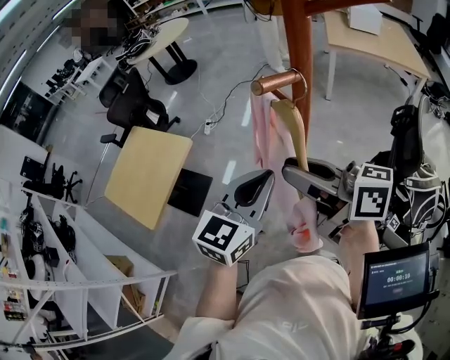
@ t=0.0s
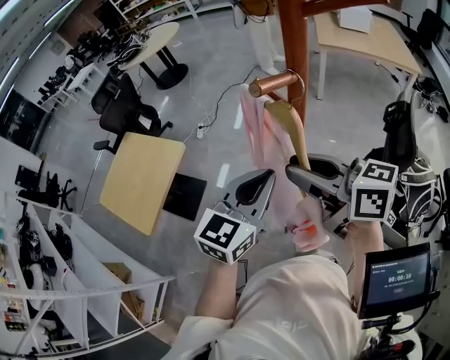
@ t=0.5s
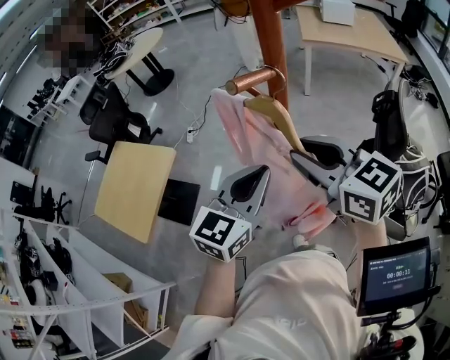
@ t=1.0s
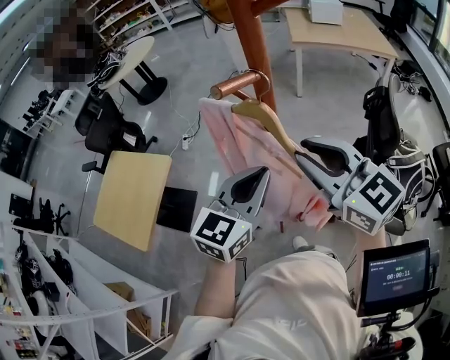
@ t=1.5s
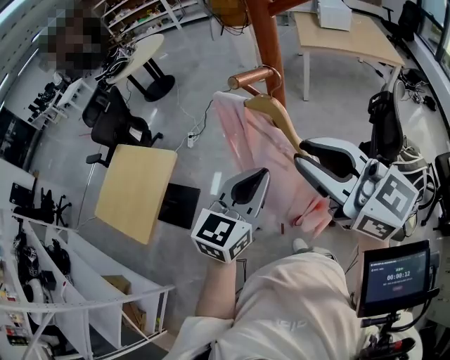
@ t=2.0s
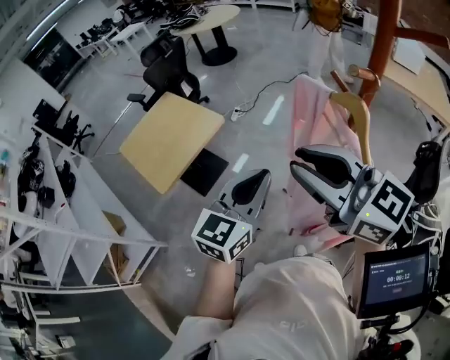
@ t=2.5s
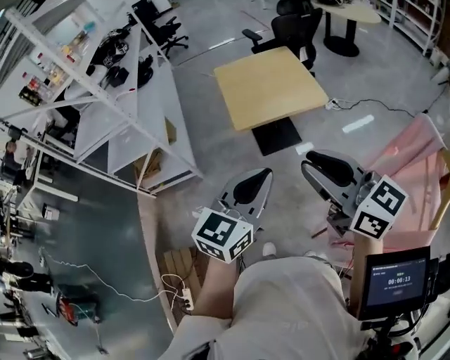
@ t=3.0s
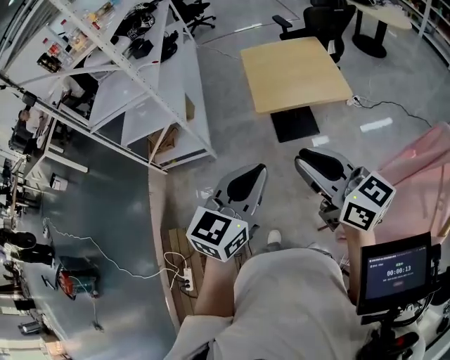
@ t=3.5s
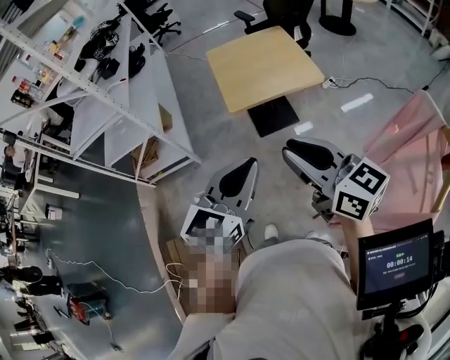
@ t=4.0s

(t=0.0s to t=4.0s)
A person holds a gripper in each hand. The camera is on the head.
t=0.0s - t=2.0s: The right gripper is displaced upward and to the right by approximately 10 cm, and rotates roughly 40 degrees.
t=2.0s - t=4.0s: The left gripper shifts by roughly 40 cm, and rotates roughly 60 degrees. Meanwhile the right gripper ends up roughly 40 cm from where it was, and swivels approximately 60 degrees.

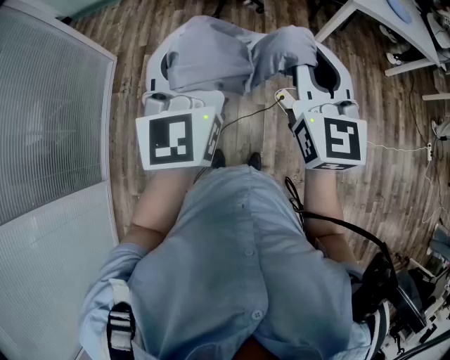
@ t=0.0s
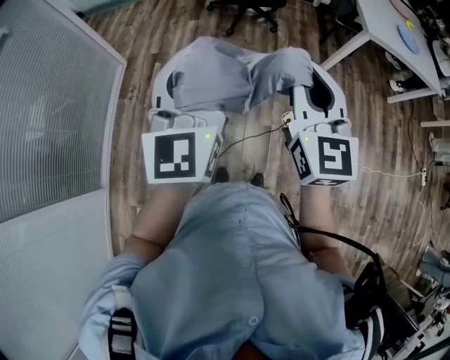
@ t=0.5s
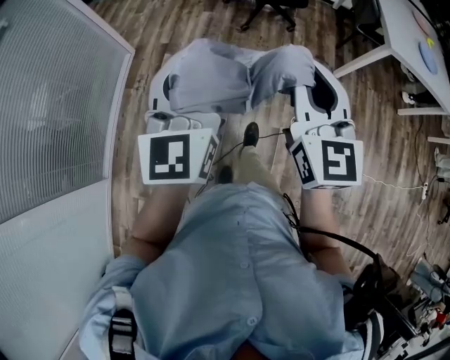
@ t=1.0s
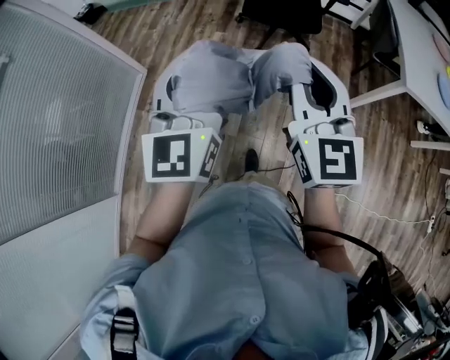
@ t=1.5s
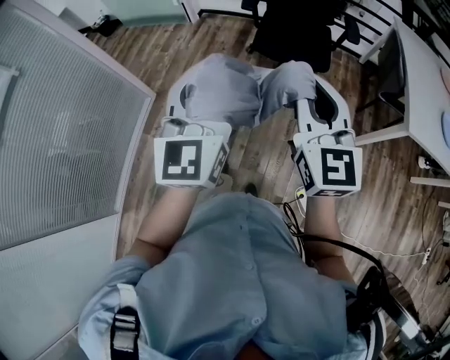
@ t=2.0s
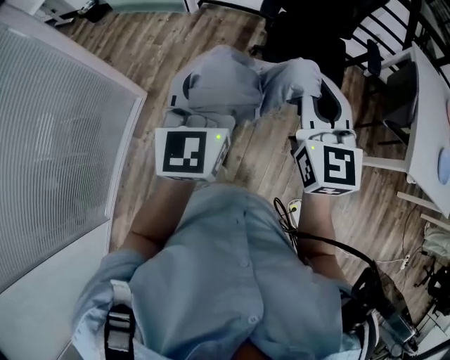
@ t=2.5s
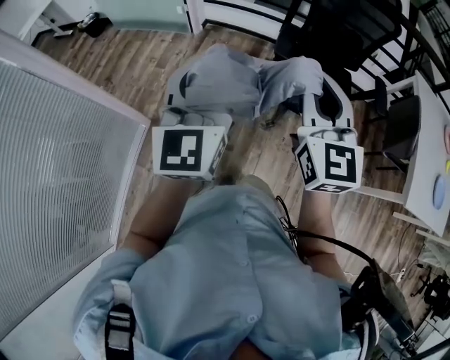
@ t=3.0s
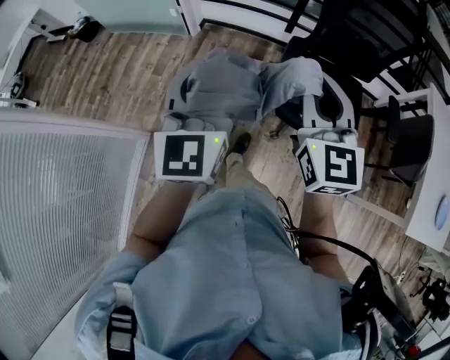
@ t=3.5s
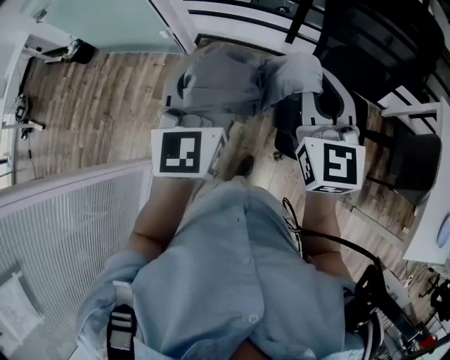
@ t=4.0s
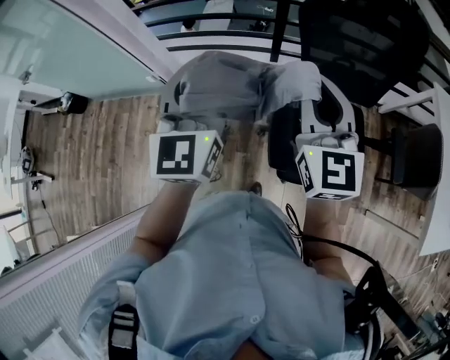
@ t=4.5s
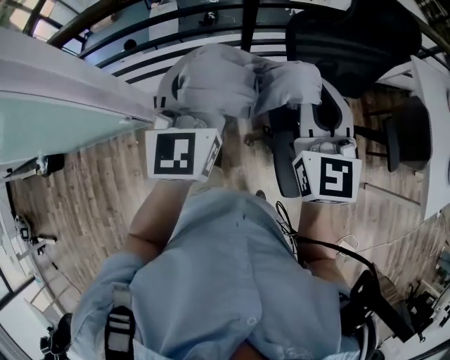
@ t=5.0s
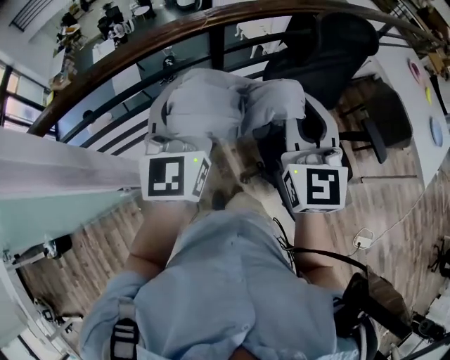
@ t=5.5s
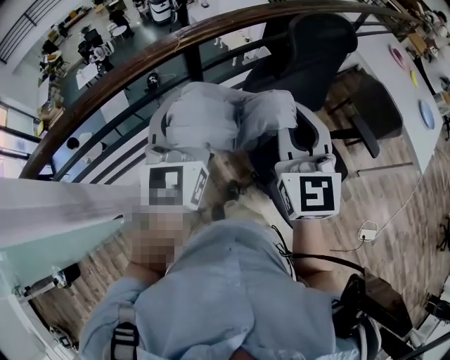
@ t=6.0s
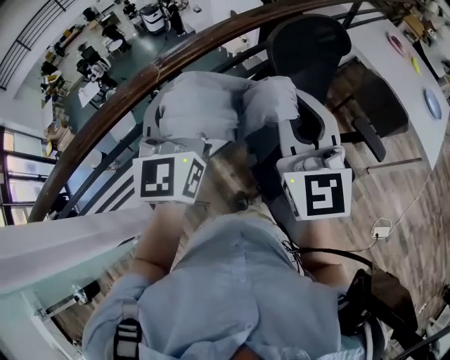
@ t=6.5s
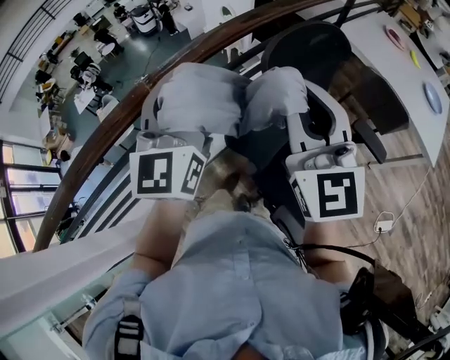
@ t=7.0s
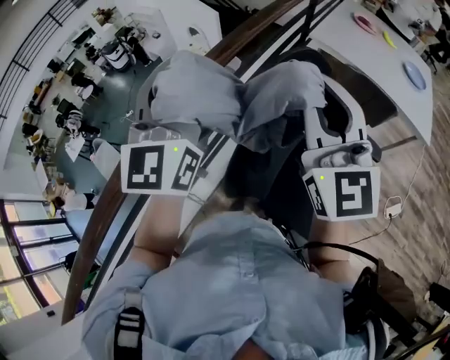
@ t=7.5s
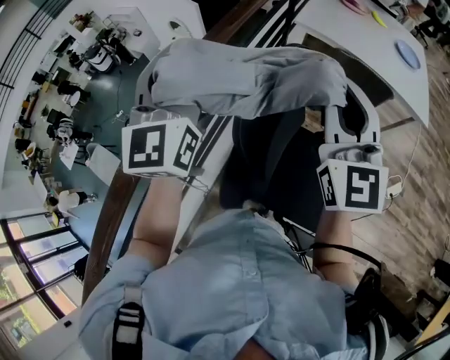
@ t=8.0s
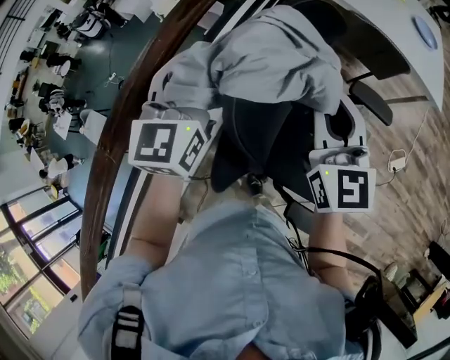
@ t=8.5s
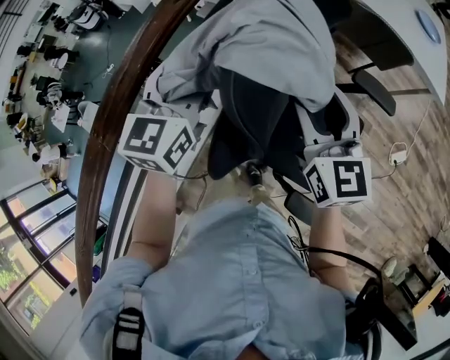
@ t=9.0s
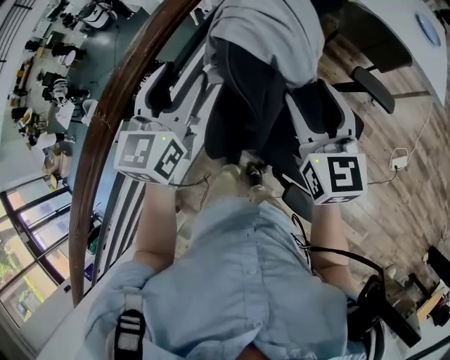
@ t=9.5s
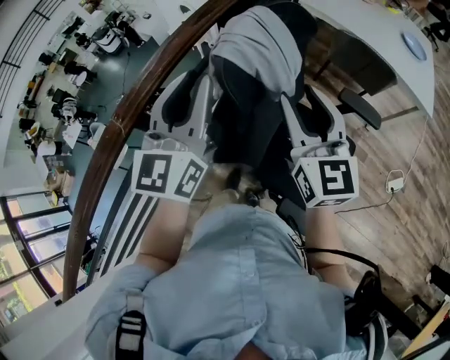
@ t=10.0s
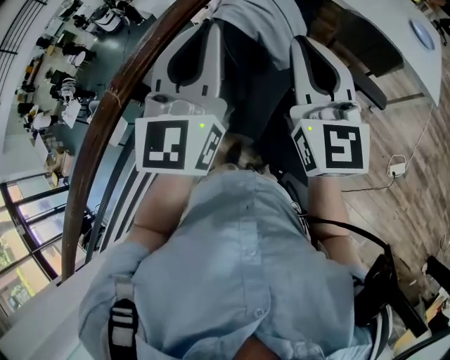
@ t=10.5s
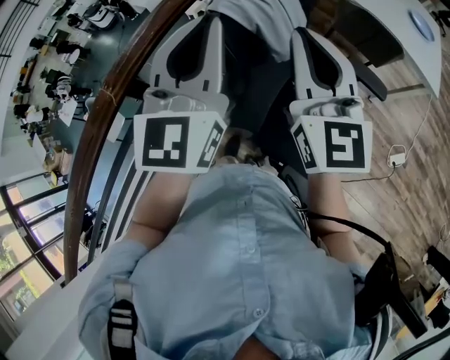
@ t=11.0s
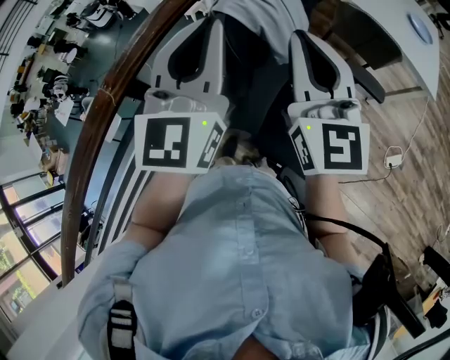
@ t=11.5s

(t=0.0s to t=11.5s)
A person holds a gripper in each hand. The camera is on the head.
t=0.0s - t=2.0s: The two grippers travel together, forward, approximately 40 cm.
t=2.0s - t=4.0s: Both grippers are carried forward, roughly 70 cm.
t=4.0s - t=6.0s: The right gripper ends up approximately 30 cm from where it was, and turns by roughly 50 degrees, while the left gripper ends up some 40 cm from where it was, and turns by approximately 50 degrees.
t=6.0s - t=7.5s: The left gripper moves forward, approximately 30 cm, and changes its angle by approximately 20 degrees. The right gripper is displaced forward, upward and to the right by some 30 cm, and rotates about 20 degrees.
t=7.5s - t=9.5s: The grippers both shift downward by about 20 cm. The right gripper swivels approximately 30 degrees, and opens up. The left gripper swivels roughly 30 degrees, and opens.
t=9.5s - t=11.5s: The left gripper moves upward and to the right, some 15 cm, turns by about 20 degrees, and closes. The right gripper travels upward by about 10 cm, and closes.

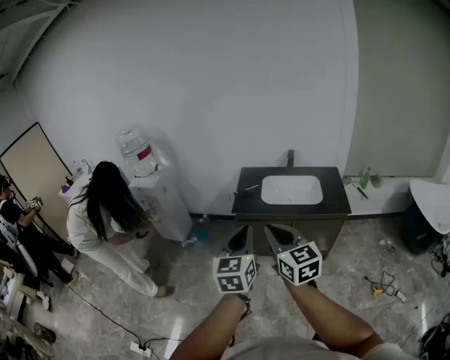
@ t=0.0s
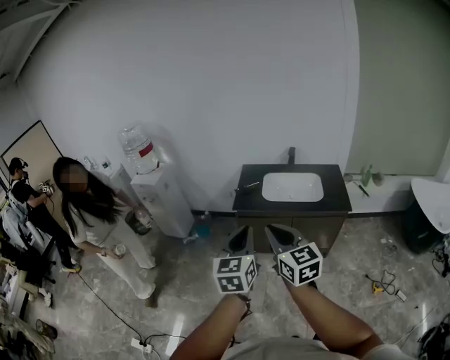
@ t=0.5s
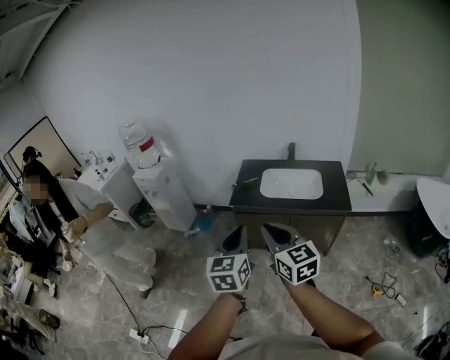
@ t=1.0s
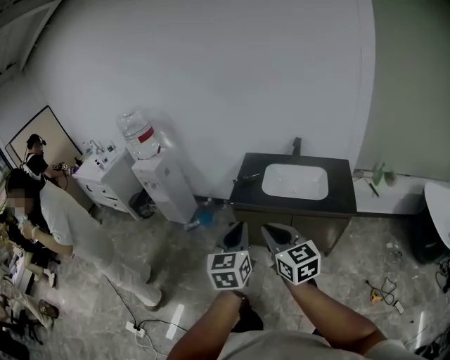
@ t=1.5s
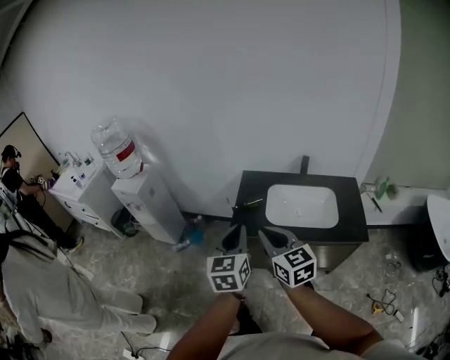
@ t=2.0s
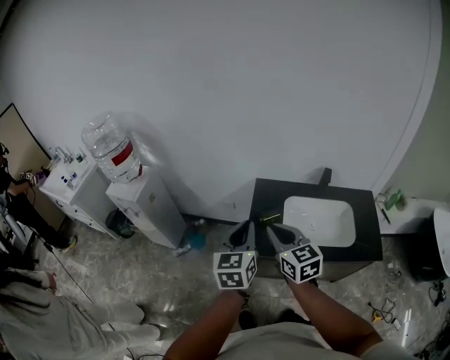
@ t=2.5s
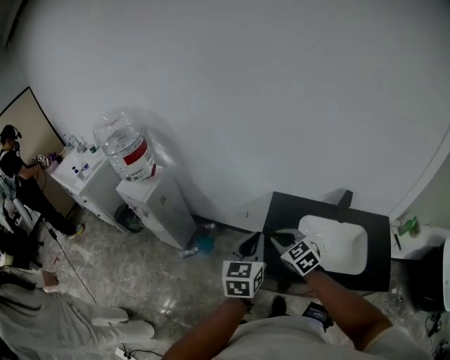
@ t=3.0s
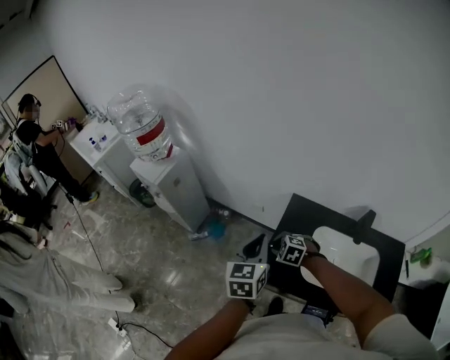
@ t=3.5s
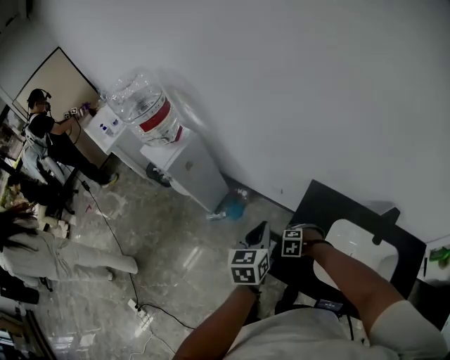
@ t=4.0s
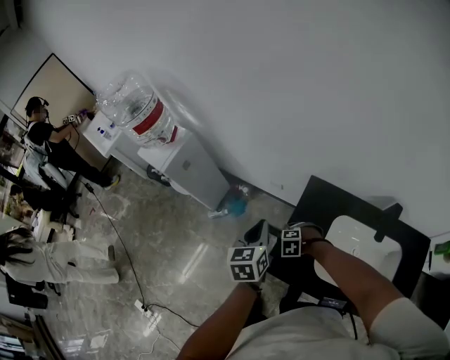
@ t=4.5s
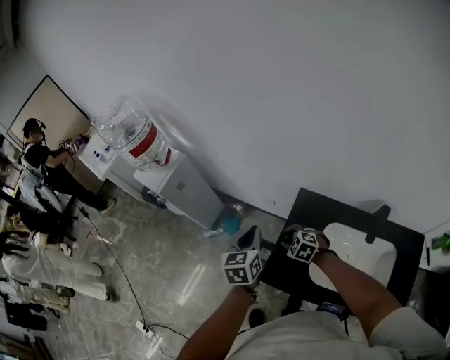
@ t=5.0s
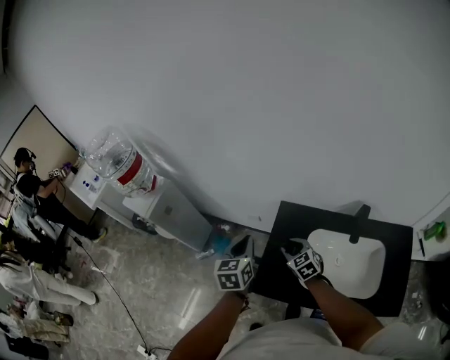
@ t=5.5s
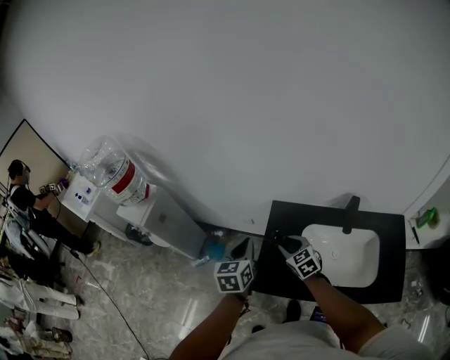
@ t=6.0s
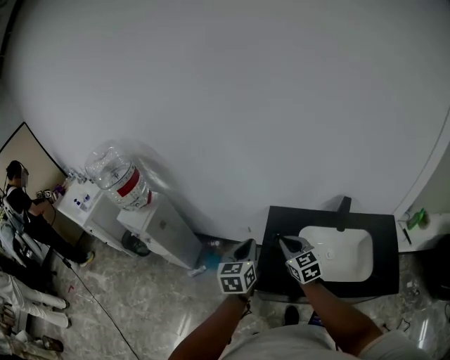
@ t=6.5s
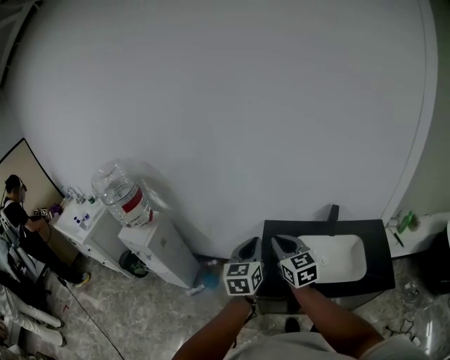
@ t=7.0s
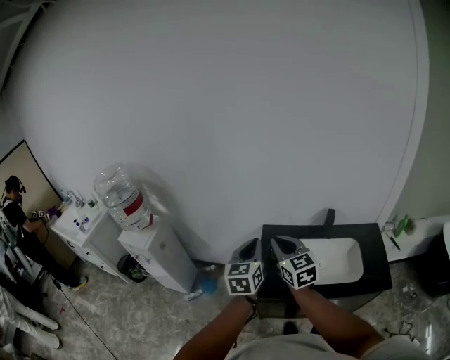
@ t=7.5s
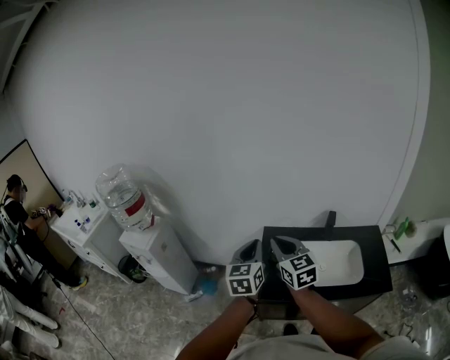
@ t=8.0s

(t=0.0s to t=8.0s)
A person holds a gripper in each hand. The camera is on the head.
t=0.0s - t=2.0s: Both grippers move forward, roughly 30 cm.
t=2.0s - t=4.0s: The right gripper goes roughly 40 cm downward, tips its fingers downward by roughly 70 degrees, and opens. The left gripper shifts by about 40 cm, and rotates some 30 degrees.
t=4.0s - t=6.0s: The left gripper shifts by about 5 cm, while the right gripper shifts approximately 15 cm upward, and tilts its fingers roughly 40 degrees upward.
t=6.0s - t=8.0s: The right gripper travels upward and backward by about 30 cm, swivels about 30 degrees, and closes up. The left gripper shifts approximately 20 cm upward and backward.

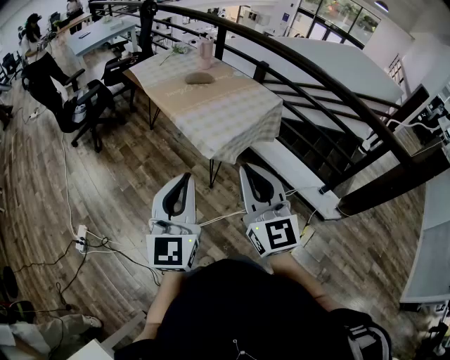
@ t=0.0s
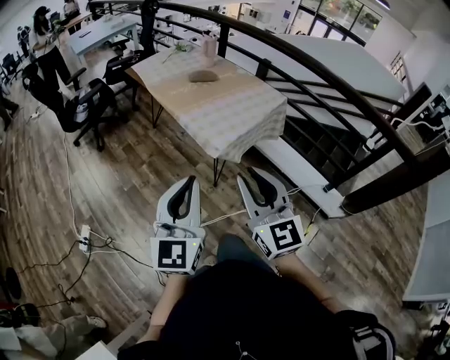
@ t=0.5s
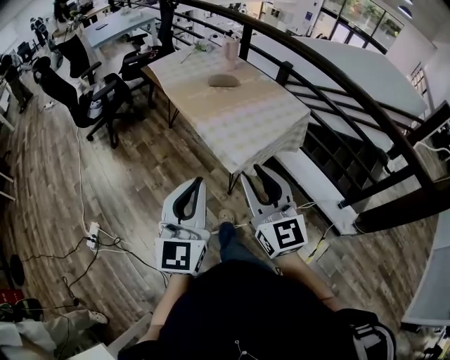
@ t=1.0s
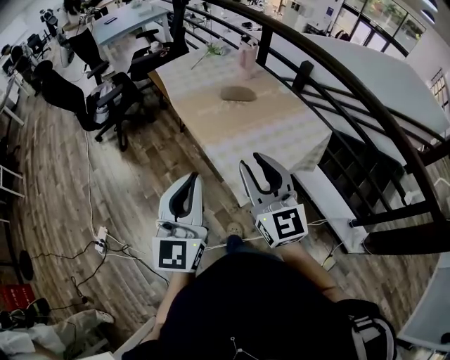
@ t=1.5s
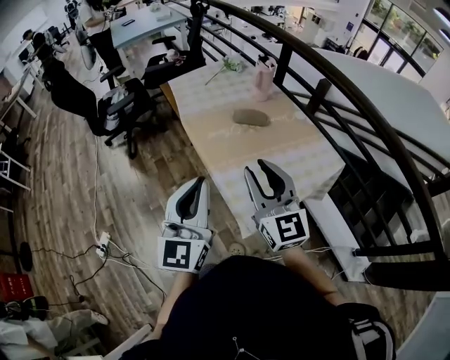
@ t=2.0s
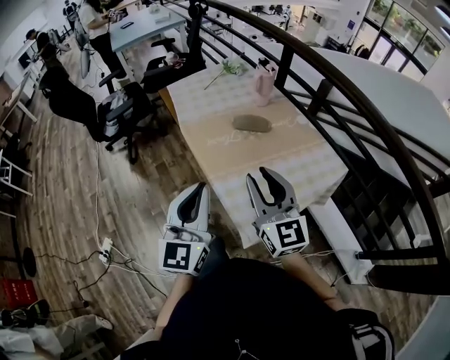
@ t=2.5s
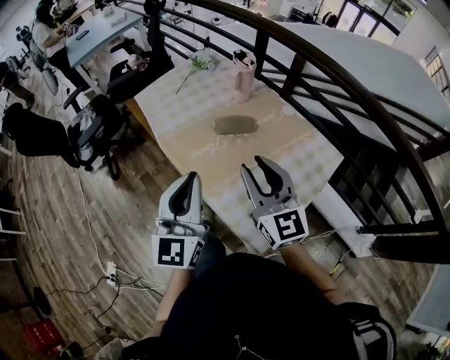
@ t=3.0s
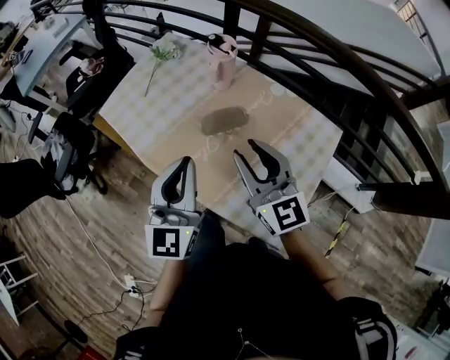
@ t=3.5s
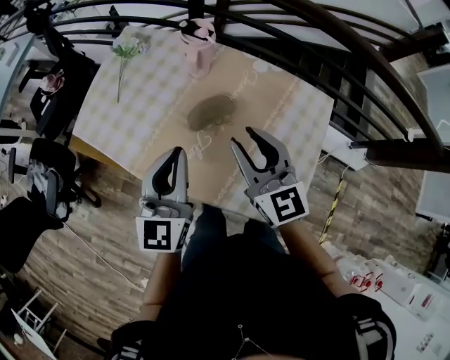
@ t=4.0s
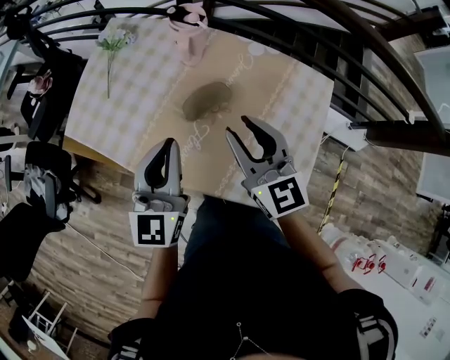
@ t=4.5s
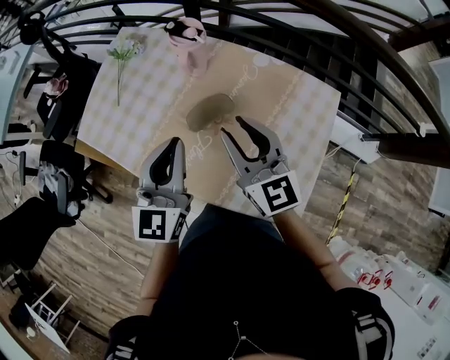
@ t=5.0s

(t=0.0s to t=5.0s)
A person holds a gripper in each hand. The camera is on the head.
t=0.0s - t=2.5s: Both grippers move forward, approximately 40 cm.
t=2.5s - t=5.0s: The right gripper changes place by approximately 30 cm, and turns by about 30 degrees. The left gripper moves about 35 cm, and swivels some 40 degrees.
